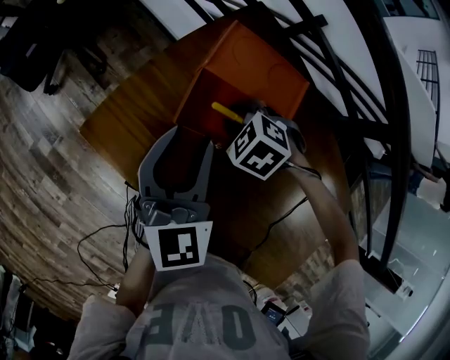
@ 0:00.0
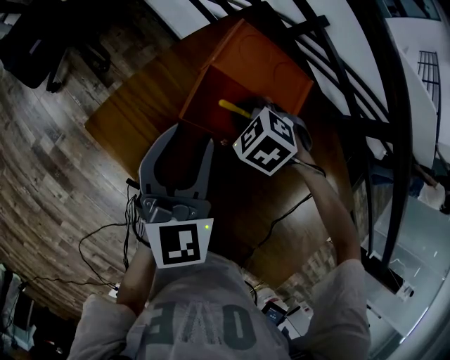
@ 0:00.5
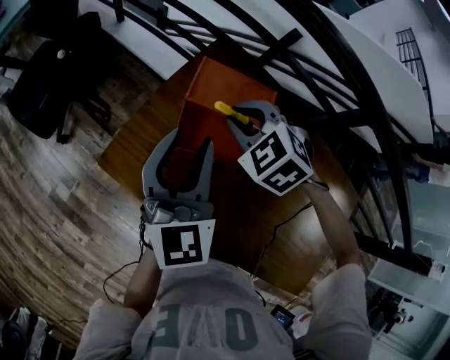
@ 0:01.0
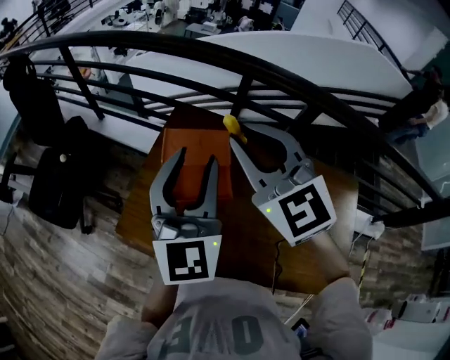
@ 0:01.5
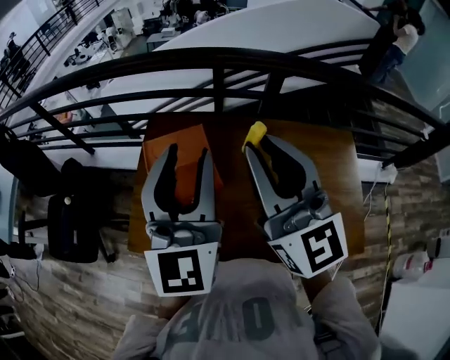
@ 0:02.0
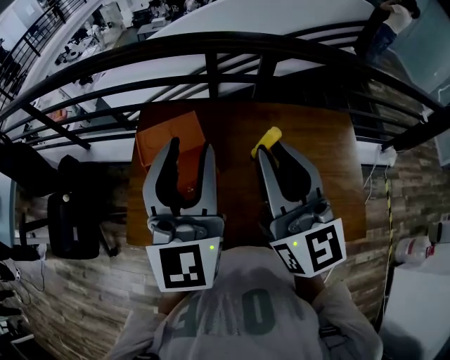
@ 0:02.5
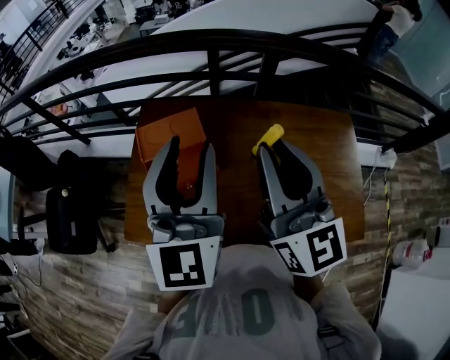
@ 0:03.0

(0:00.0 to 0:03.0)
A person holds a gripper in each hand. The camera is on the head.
0:00.0 - 0:01.5: The right gripper goes some 40 cm upward, and tips its fingers upward by about 70 degrees, while the left gripper travels upward by about 25 cm, and swivels about 30 degrees.
0:01.5 - 0:03.0: The right gripper heads to the right and backward, covering approximately 20 cm, and turns by about 40 degrees; the left gripper is displaced to the right by roughly 10 cm.

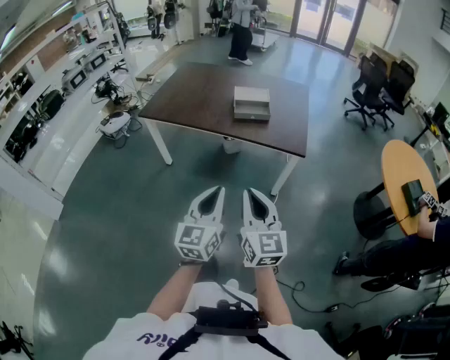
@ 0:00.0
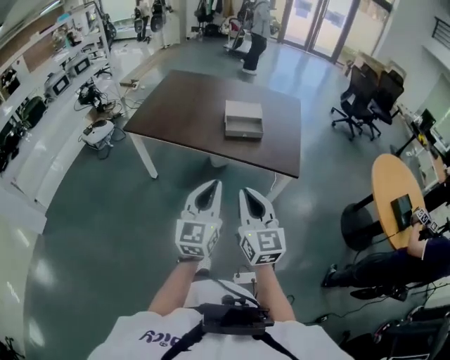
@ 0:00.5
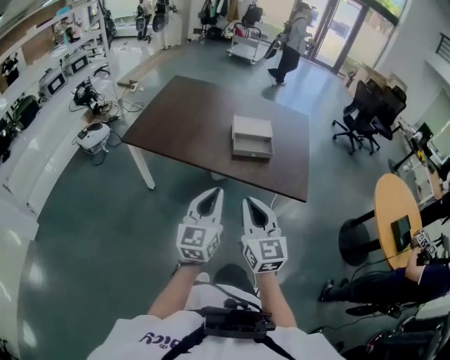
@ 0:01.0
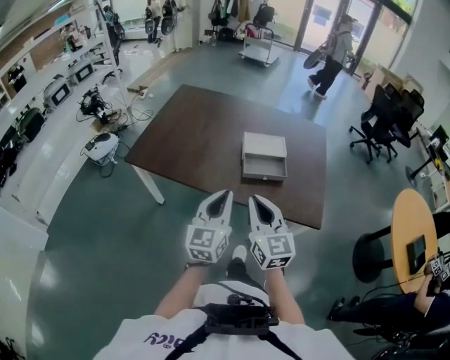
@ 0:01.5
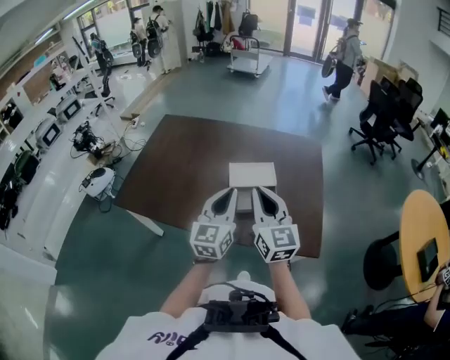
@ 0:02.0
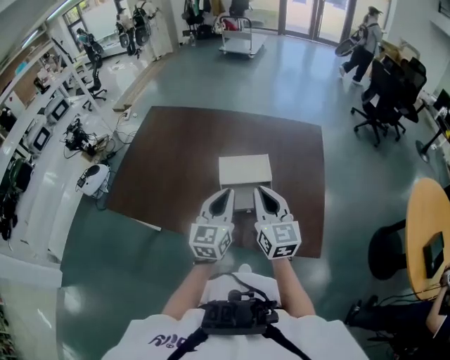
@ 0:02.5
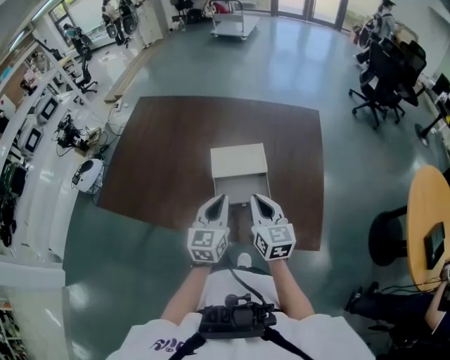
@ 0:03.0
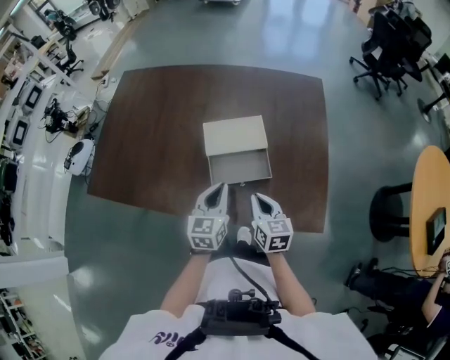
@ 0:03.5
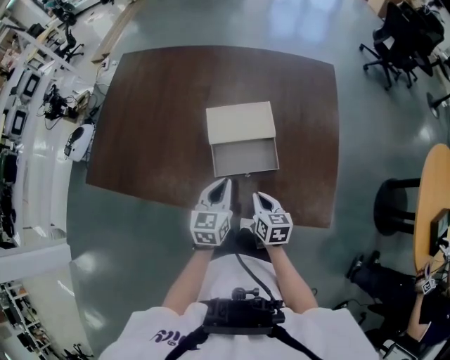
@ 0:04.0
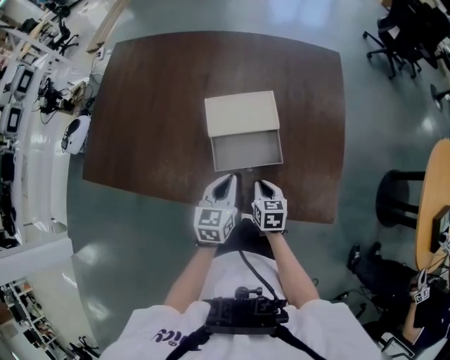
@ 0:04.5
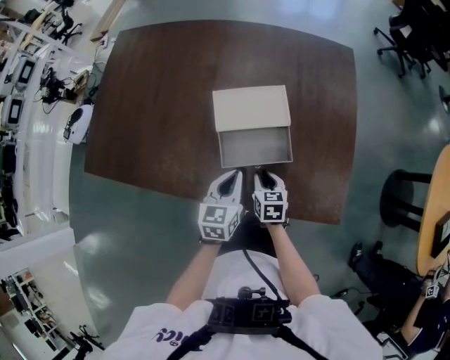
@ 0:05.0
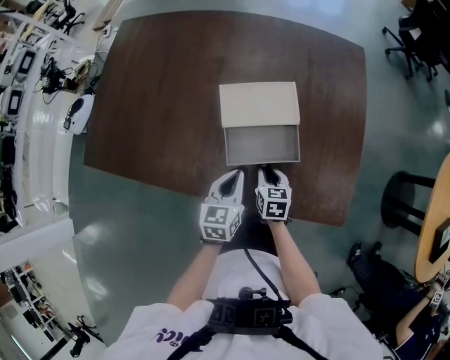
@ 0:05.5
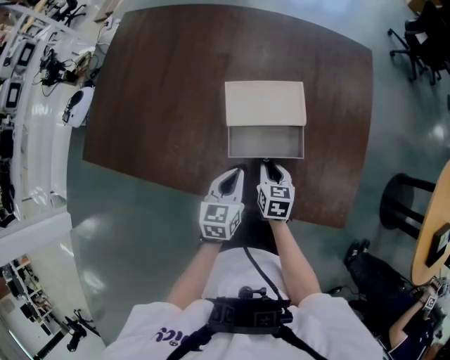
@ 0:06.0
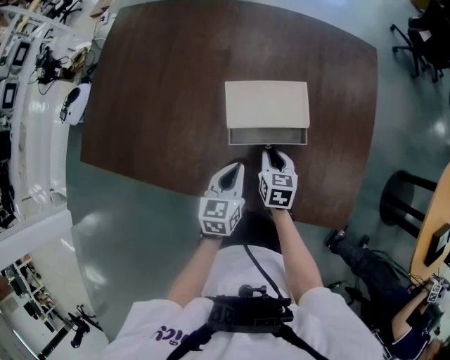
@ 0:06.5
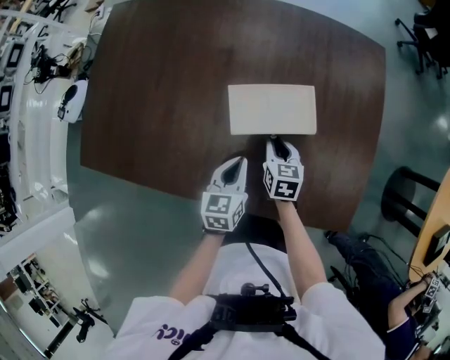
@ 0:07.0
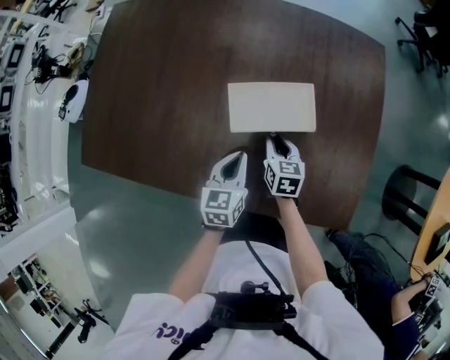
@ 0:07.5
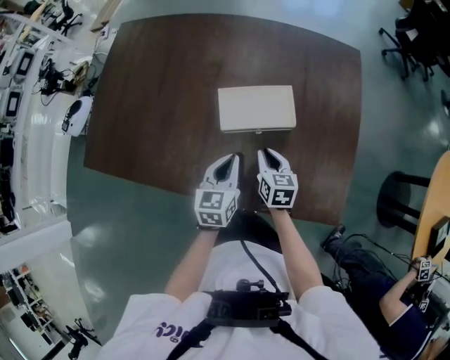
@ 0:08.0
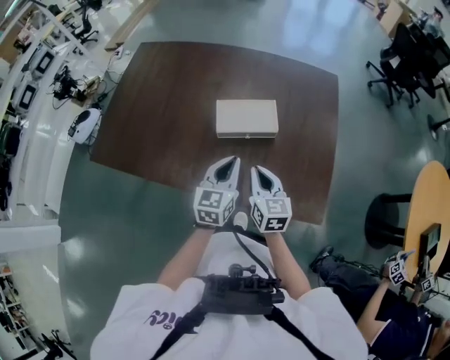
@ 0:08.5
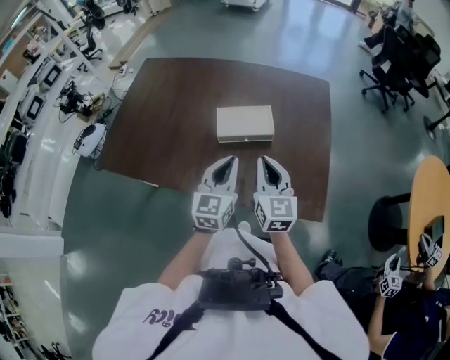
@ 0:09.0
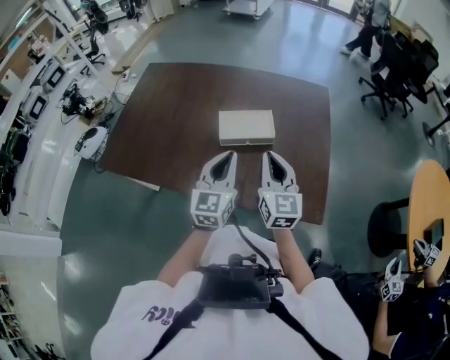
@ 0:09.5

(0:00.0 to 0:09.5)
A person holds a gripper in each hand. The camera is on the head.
0:00.0 - 0:02.0: The pair of grippers is taken forward, about 60 cm.
0:02.0 - 0:04.0: Both grippers move downward, about 30 cm. The left gripper turns by some 30 degrees; the right gripper angles its fingers downward, by some 40 degrees.
0:04.0 - 0:05.5: The right gripper is displaced downward and forward by approximately 10 cm, while the left gripper moves downward, approximately 5 cm.
0:05.5 - 0:07.5: The right gripper travels forward by roughly 10 cm; the left gripper heads forward, covering about 10 cm.
0:07.5 - 0:09.5: The two grippers go roughly 35 cm upward and backward. The right gripper tips its fingers upward by approximately 40 degrees, while the left gripper tilts its fingers about 30 degrees upward.

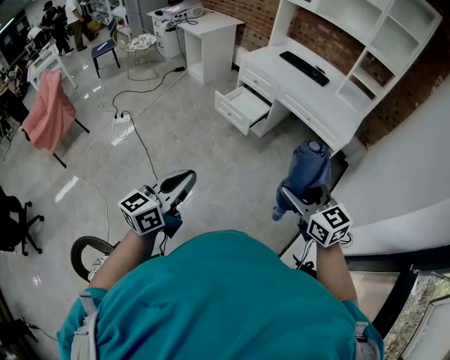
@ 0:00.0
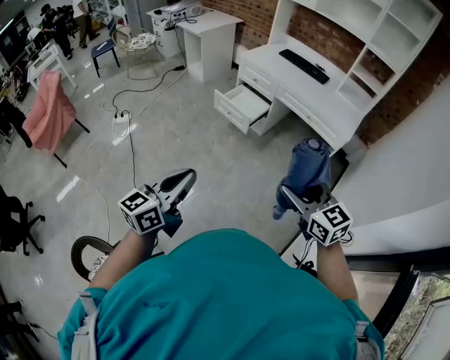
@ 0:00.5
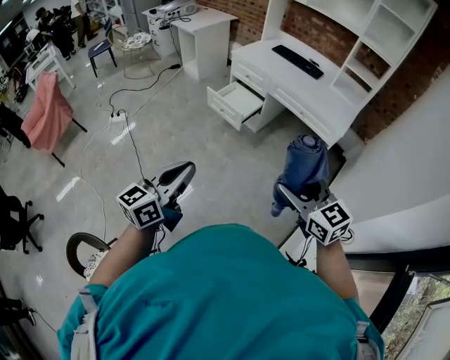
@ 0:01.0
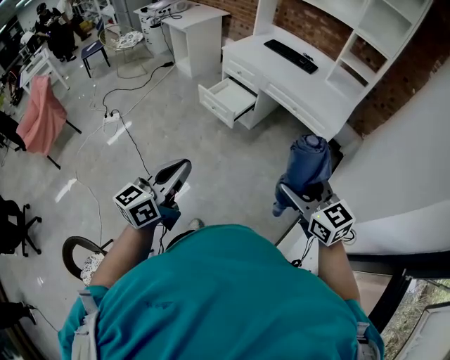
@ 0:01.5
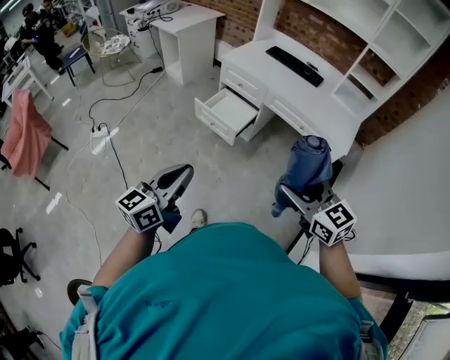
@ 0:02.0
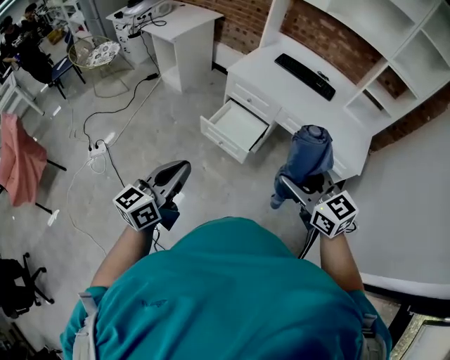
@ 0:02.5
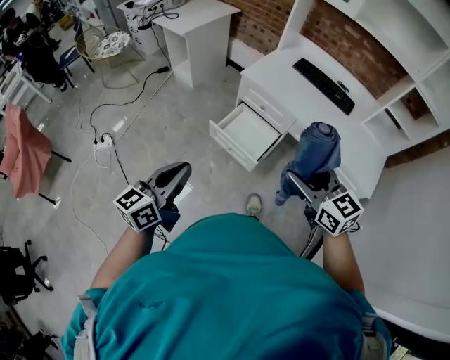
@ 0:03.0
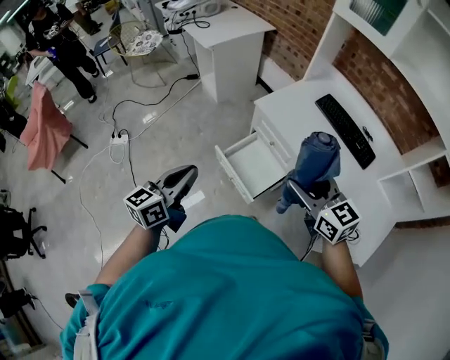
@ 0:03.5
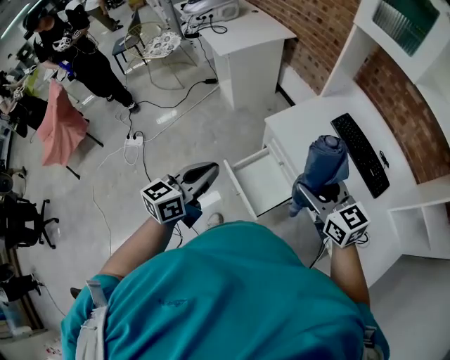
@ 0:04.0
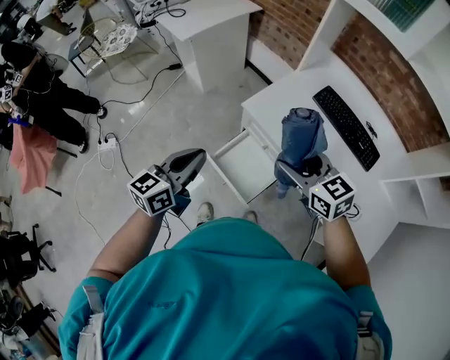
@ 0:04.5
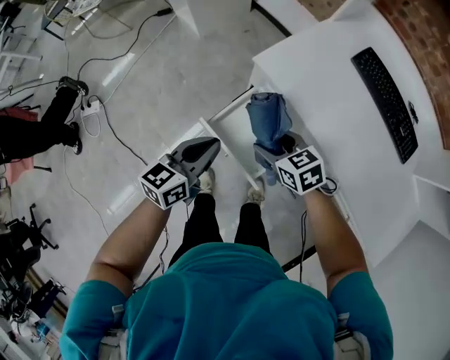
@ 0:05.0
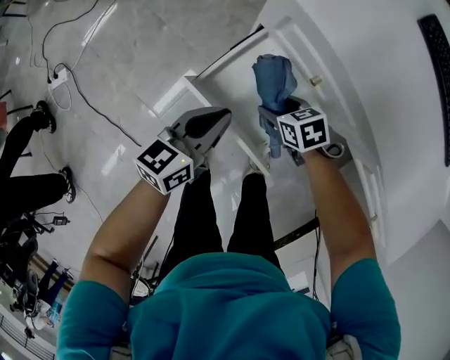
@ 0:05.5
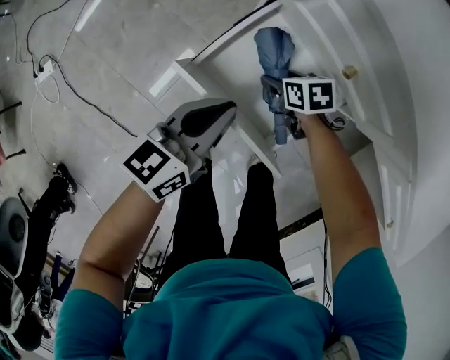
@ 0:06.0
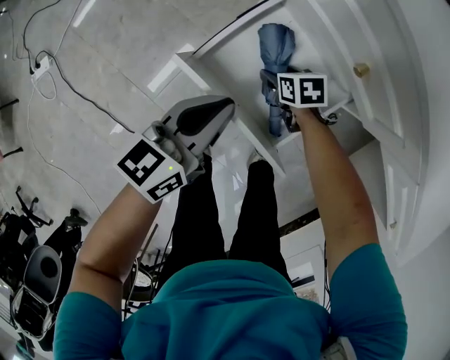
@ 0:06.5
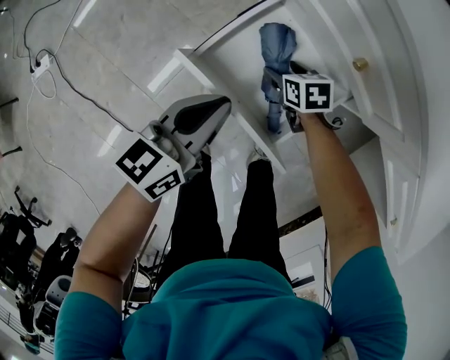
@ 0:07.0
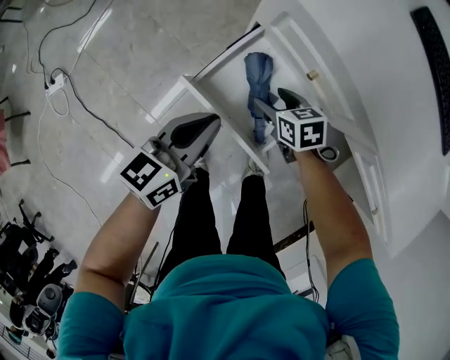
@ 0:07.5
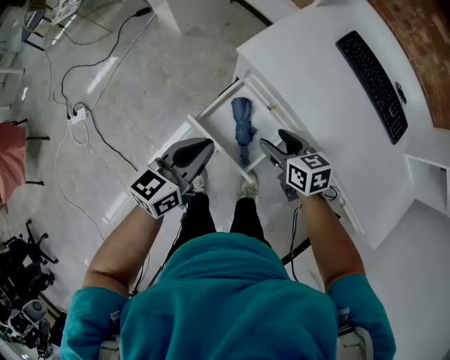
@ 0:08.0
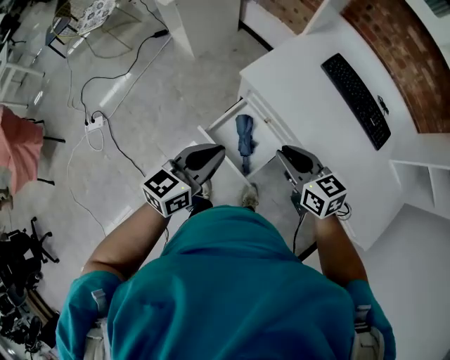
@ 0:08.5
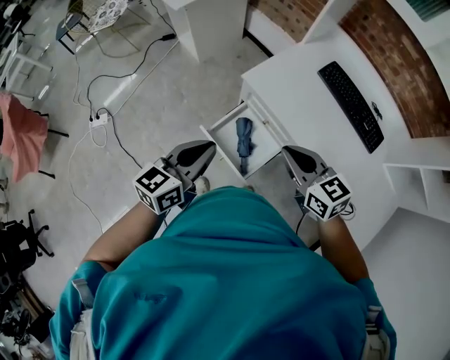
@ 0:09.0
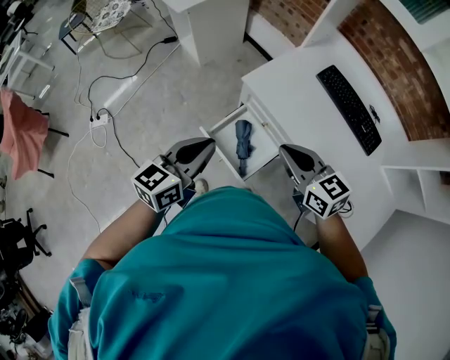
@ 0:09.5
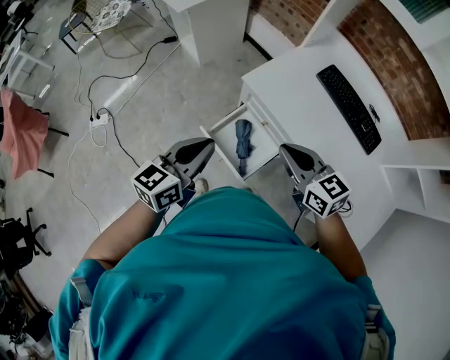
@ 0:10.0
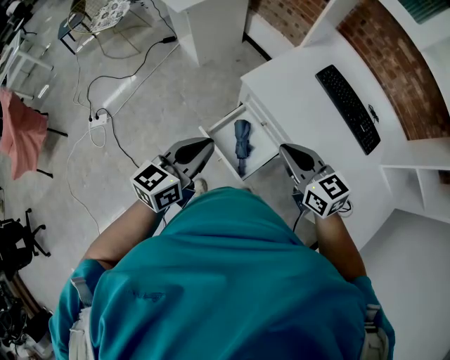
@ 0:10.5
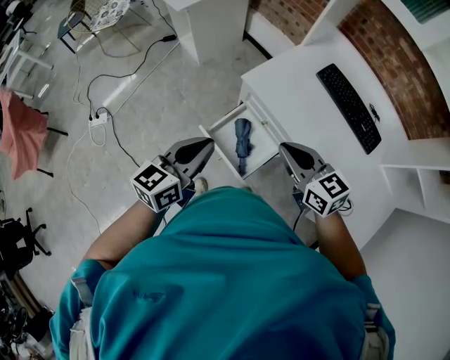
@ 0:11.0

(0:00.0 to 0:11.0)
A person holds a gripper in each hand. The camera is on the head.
0:00.0 - 0:02.0: The two grippers go roughly 20 cm forward.
0:02.0 - 0:03.5: The pair of grippers is taken forward, some 50 cm.
0:03.5 - 0:05.5: The right gripper is displaced downward by approximately 60 cm, and points its fingers roughly 40 degrees further downward, while the left gripper is displaced downward and forward by about 40 cm, and turns by about 20 degrees.
0:05.5 - 0:07.5: The right gripper reaches approximately 15 cm downward, then returns.
0:07.5 - 0:09.0: The grippers both shift upward by roughly 40 cm. The right gripper rotates about 30 degrees, and closes.
0:09.0 - 0:11.0: There are only small adjustments of the grippers.

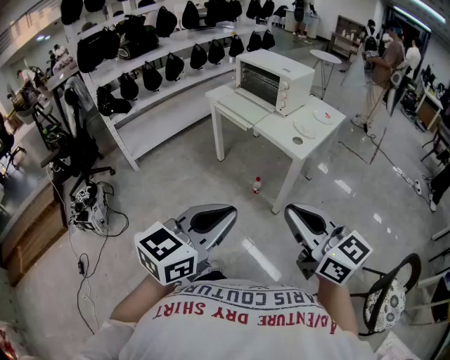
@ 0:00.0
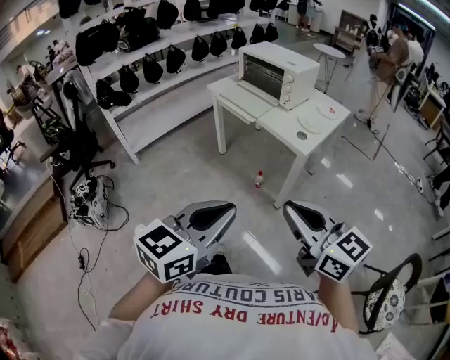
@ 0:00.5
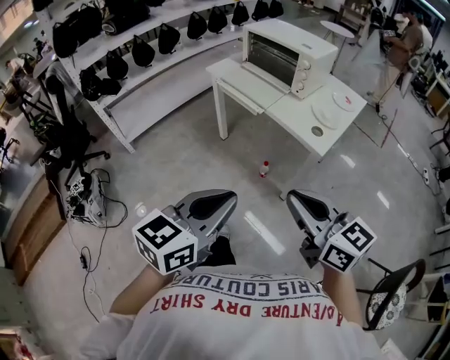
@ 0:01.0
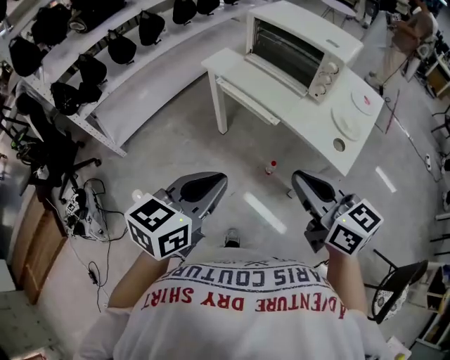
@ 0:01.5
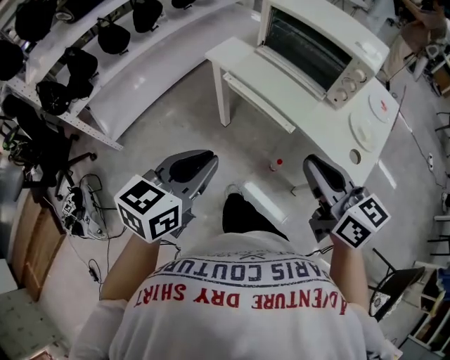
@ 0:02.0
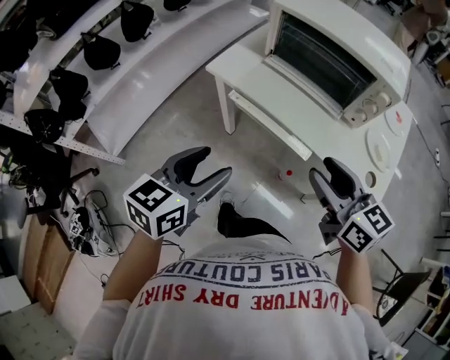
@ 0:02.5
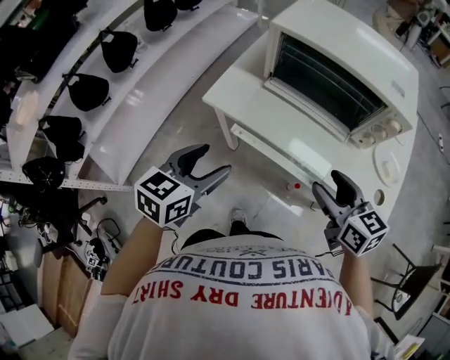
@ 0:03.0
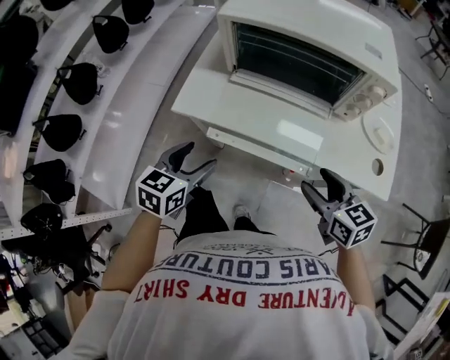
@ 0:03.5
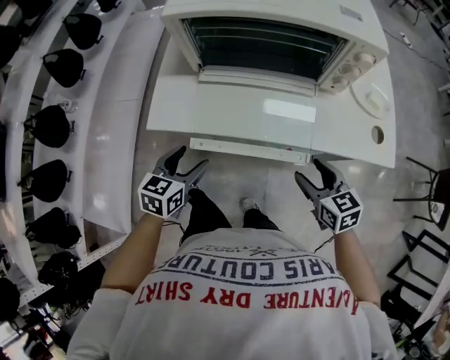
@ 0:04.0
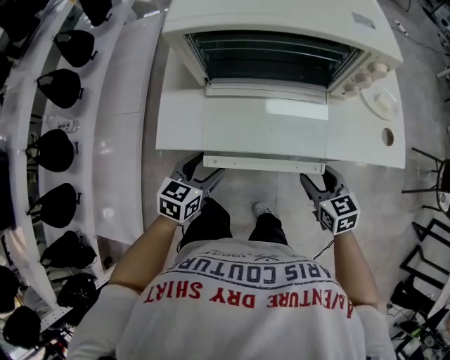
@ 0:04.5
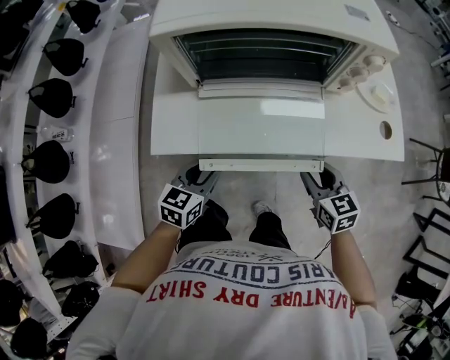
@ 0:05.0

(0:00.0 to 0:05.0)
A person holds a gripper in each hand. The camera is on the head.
0:00.0 - 0:02.5: The pair of grippers is taken forward, approximately 60 cm. The left gripper opens up, while the right gripper changes its angle by approximately 20 degrees, and opens up.
0:02.5 - 0:05.0: The right gripper heads downward, covering approximately 20 cm, and rotates some 40 degrees; the left gripper moves approximately 30 cm, rotates some 40 degrees, and closes its fingers.
